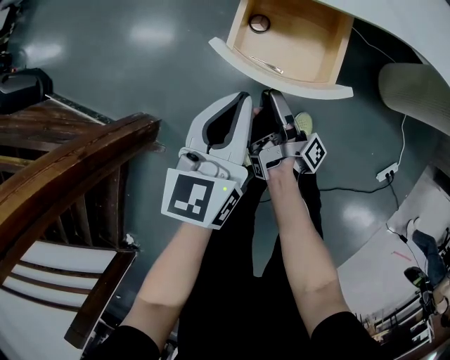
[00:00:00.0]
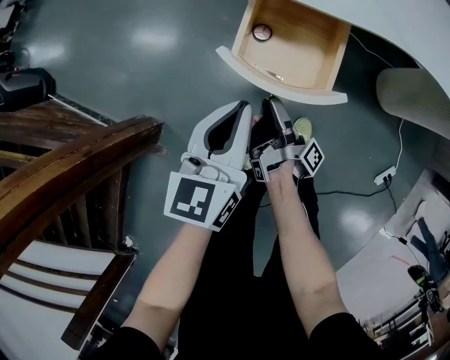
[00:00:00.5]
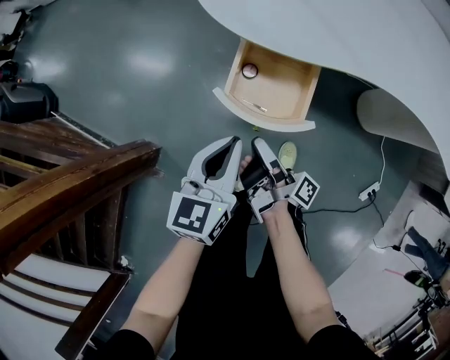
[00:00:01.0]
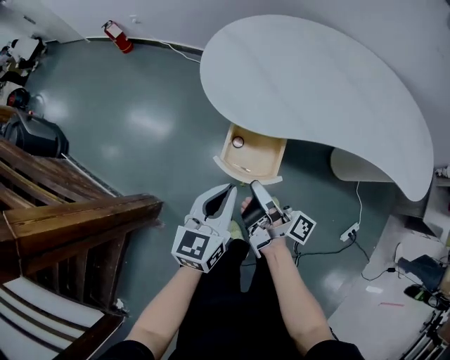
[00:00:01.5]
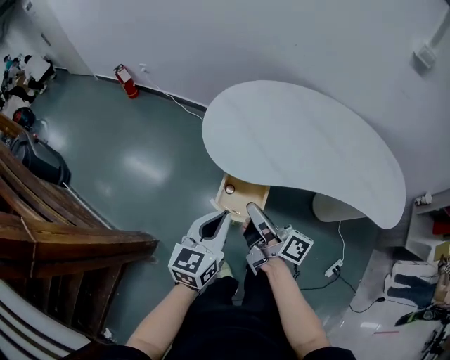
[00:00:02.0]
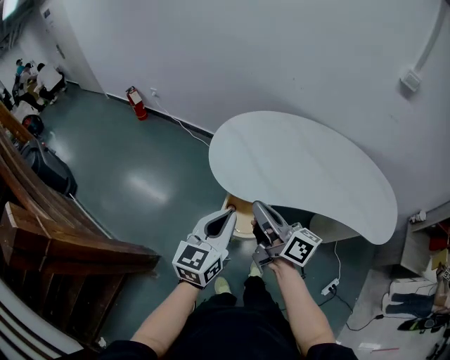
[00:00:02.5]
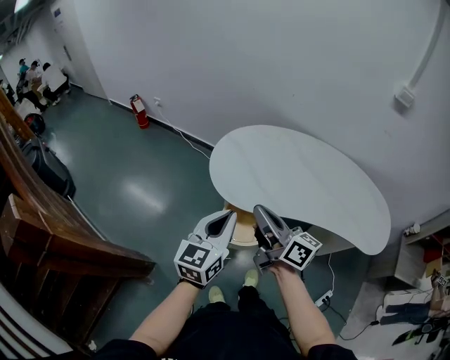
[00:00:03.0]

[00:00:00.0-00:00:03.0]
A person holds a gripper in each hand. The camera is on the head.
00:00:00.0 to 00:00:01.5: The left gripper heads upward, covering roughly 20 cm.
00:00:01.5 to 00:00:03.0: The left gripper travels upward by some 25 cm.

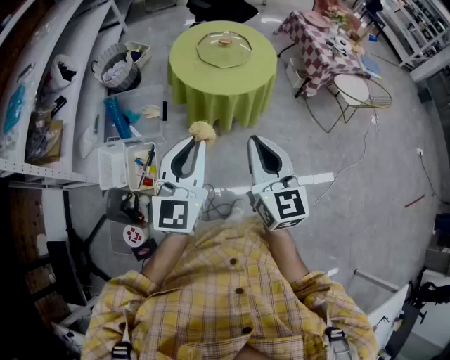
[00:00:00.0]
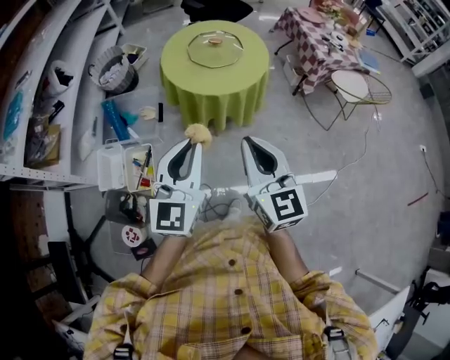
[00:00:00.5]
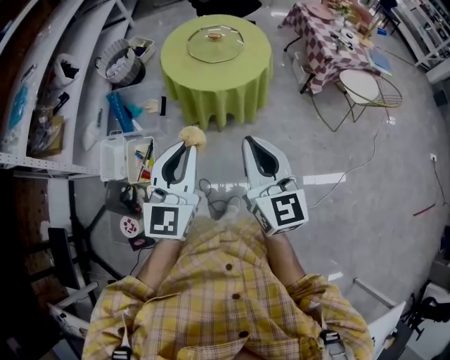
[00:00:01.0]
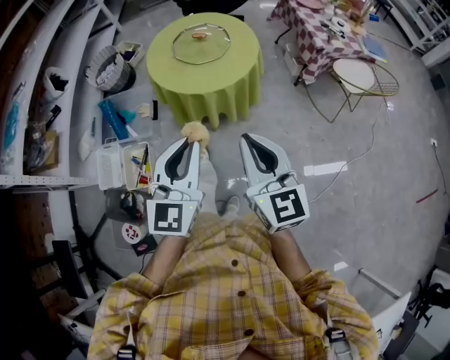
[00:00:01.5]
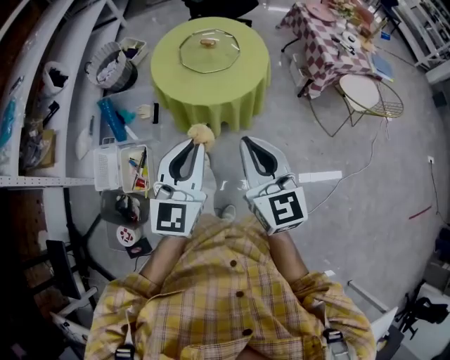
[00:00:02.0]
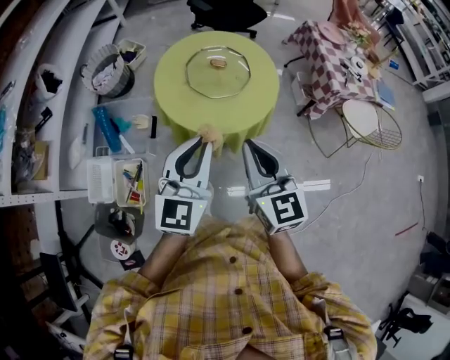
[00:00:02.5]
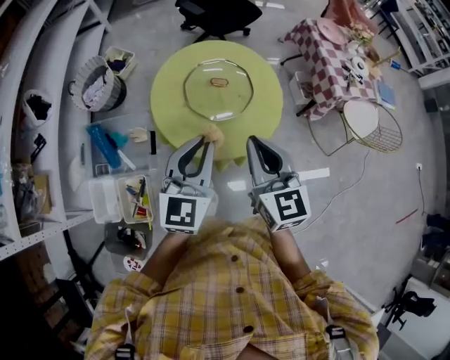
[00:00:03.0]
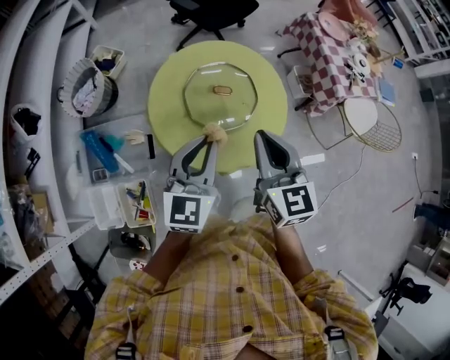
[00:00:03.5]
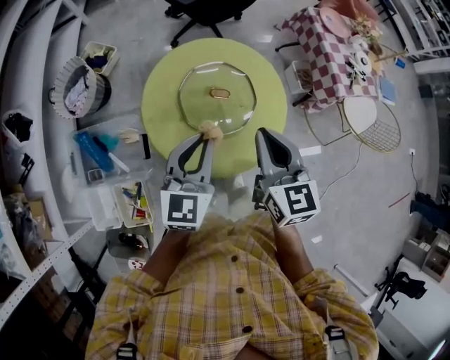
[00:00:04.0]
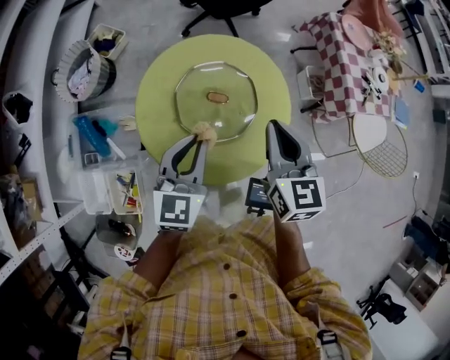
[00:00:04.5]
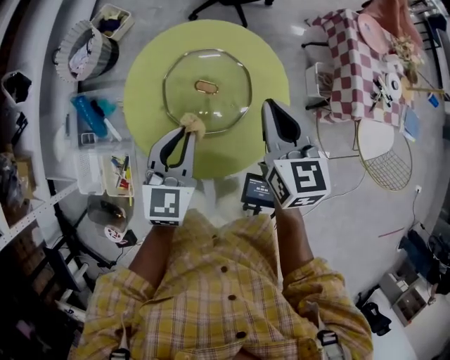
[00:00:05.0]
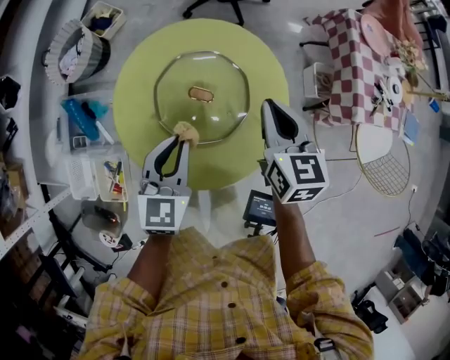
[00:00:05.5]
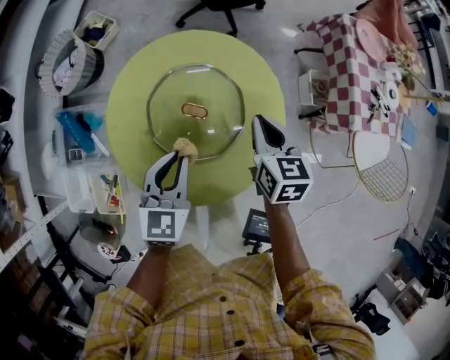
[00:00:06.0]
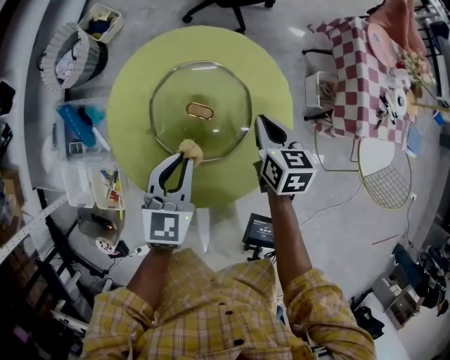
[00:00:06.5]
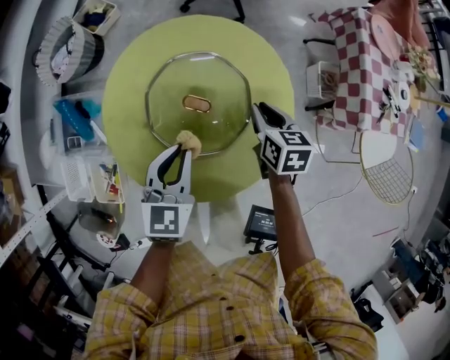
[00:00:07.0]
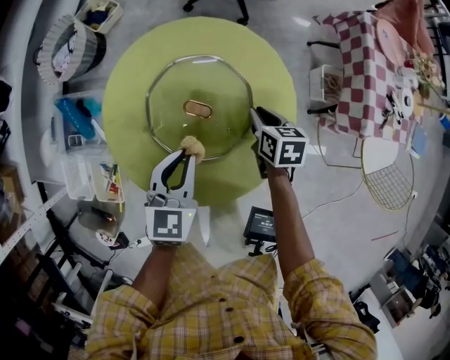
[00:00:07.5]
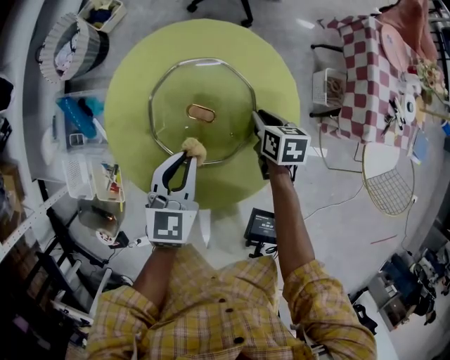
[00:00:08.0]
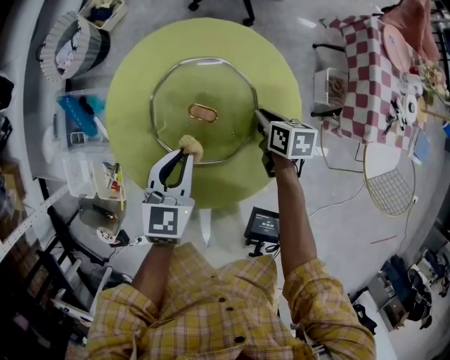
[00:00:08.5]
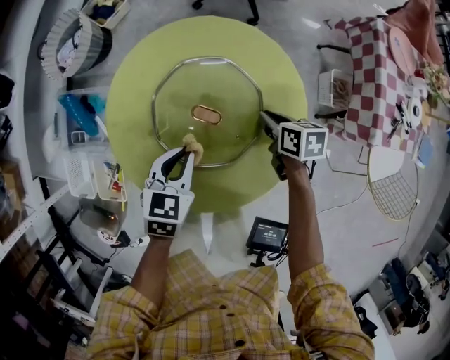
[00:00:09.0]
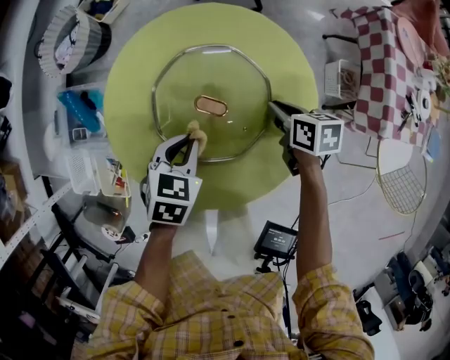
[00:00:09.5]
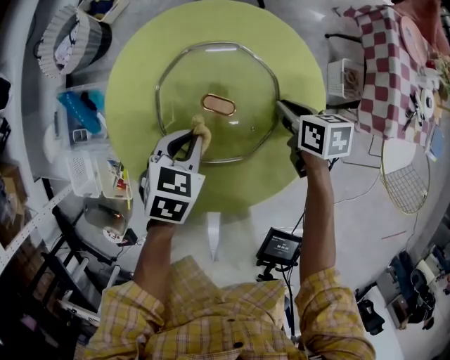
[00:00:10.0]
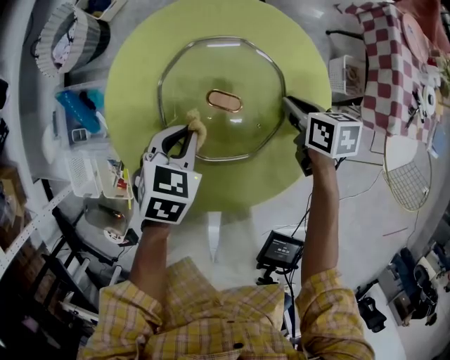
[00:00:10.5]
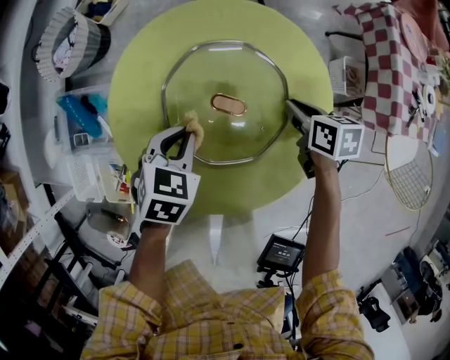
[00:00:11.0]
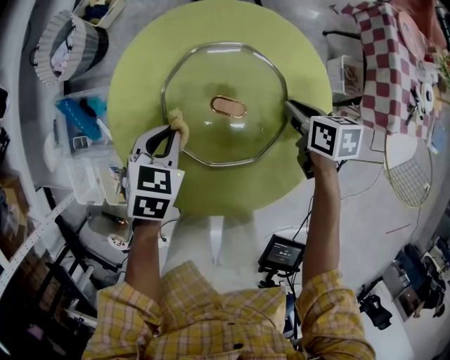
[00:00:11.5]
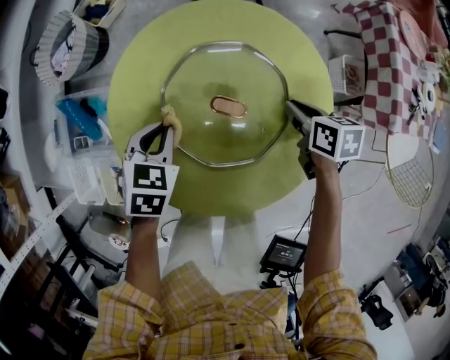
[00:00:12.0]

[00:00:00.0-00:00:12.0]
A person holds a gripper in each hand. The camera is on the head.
00:00:00.0 to 00:00:02.0: Both grippers travel together to the right and forward, approximately 20 cm.
00:00:02.0 to 00:00:04.0: The pair of grippers is taken forward, about 50 cm.
00:00:04.0 to 00:00:06.0: The left gripper heads downward, forward and to the right, covering some 20 cm, and rotates some 20 degrees; the right gripper shifts about 30 cm downward, forward and to the right.
00:00:06.0 to 00:00:08.0: The right gripper heads downward, covering roughly 15 cm, and swivels about 20 degrees. The left gripper moves roughly 5 cm.
00:00:08.0 to 00:00:10.0: The left gripper moves downward, roughly 10 cm, and changes its angle by approximately 30 degrees.
00:00:10.0 to 00:00:12.0: The left gripper moves to the left, about 10 cm.

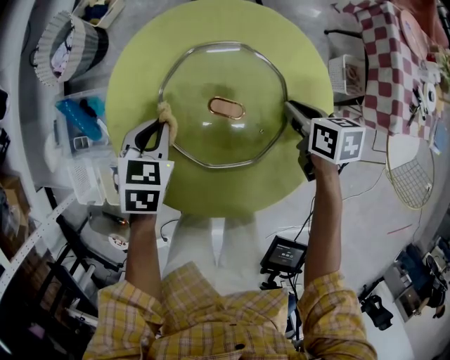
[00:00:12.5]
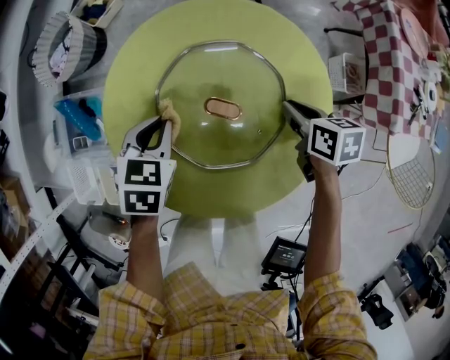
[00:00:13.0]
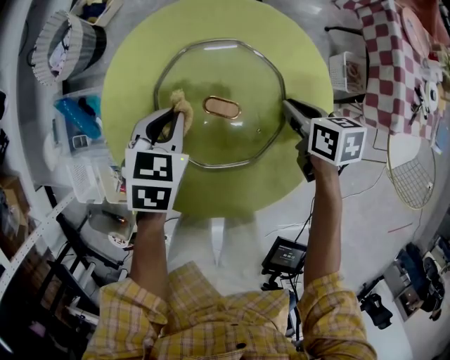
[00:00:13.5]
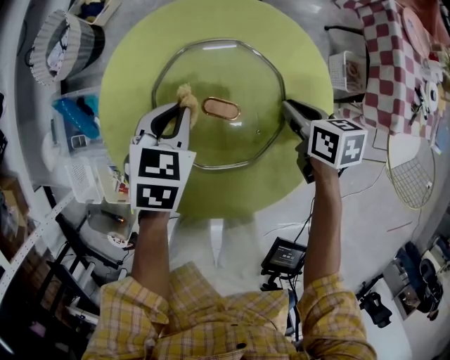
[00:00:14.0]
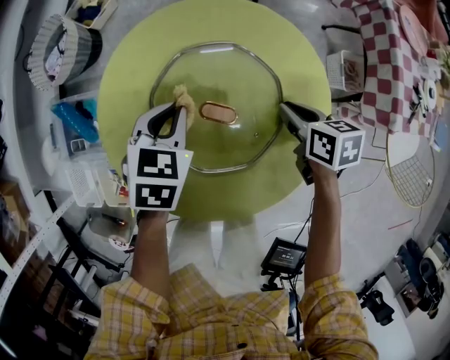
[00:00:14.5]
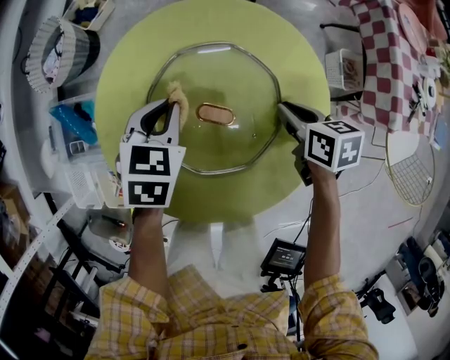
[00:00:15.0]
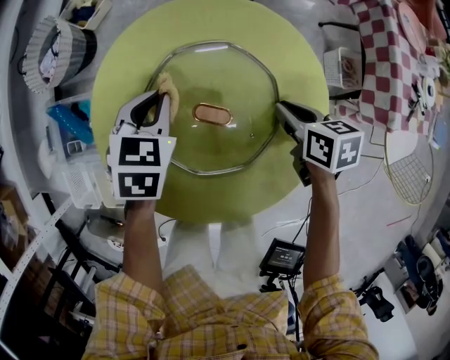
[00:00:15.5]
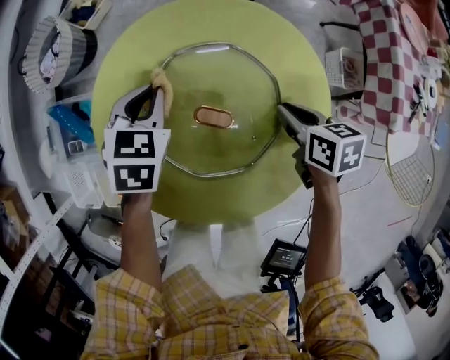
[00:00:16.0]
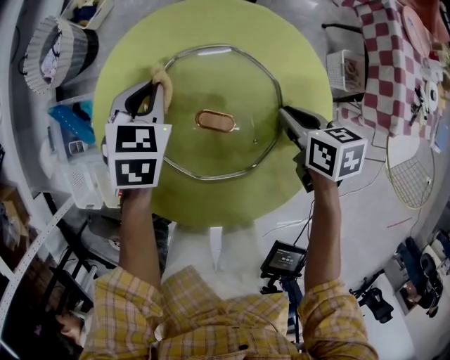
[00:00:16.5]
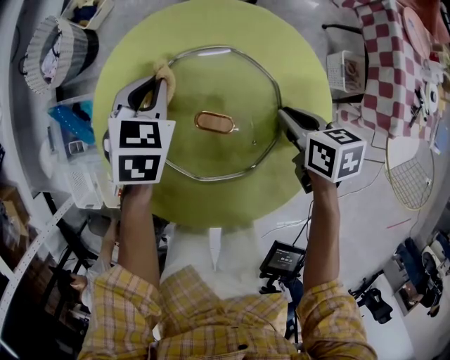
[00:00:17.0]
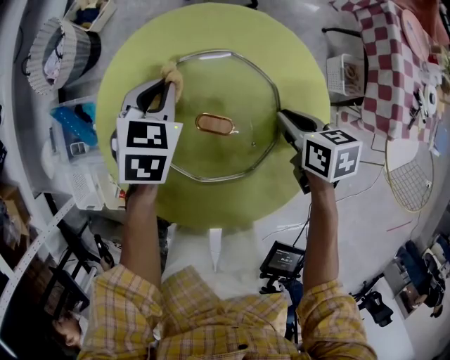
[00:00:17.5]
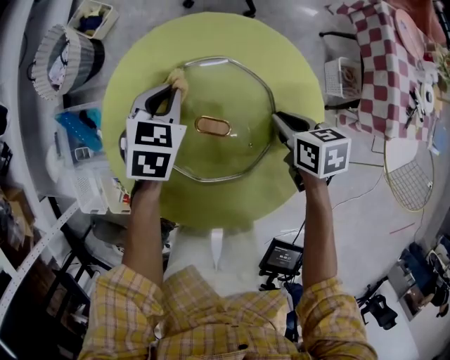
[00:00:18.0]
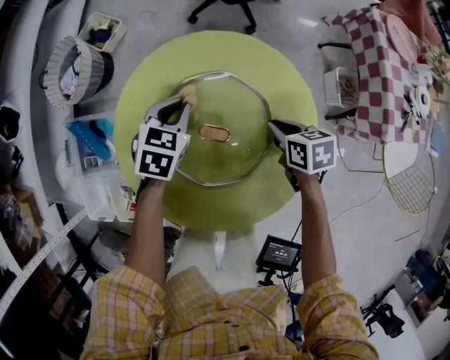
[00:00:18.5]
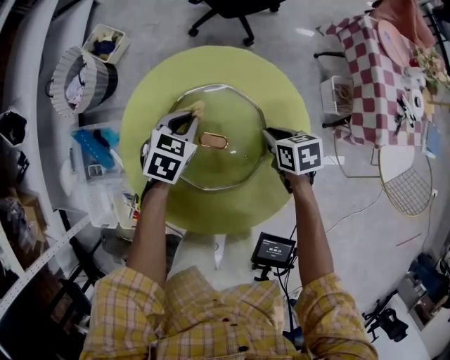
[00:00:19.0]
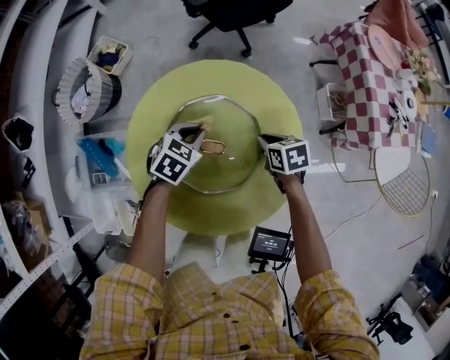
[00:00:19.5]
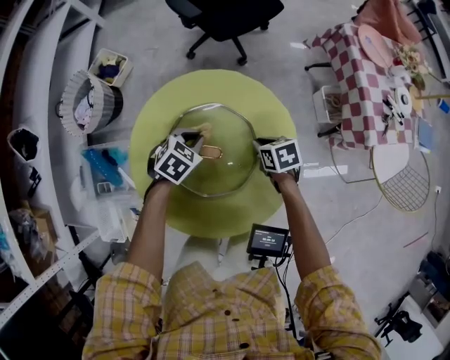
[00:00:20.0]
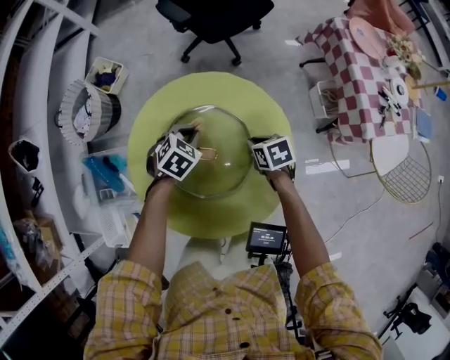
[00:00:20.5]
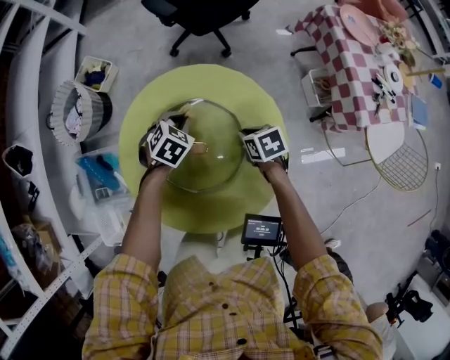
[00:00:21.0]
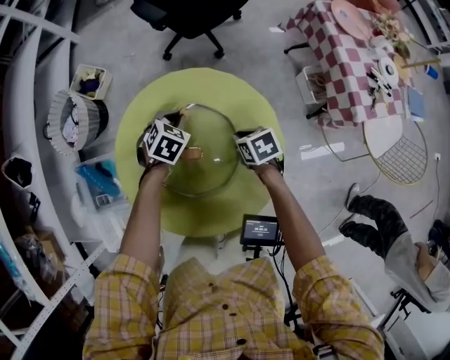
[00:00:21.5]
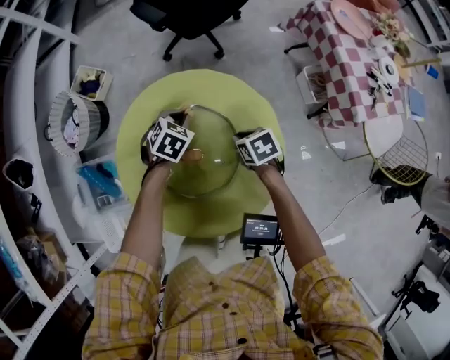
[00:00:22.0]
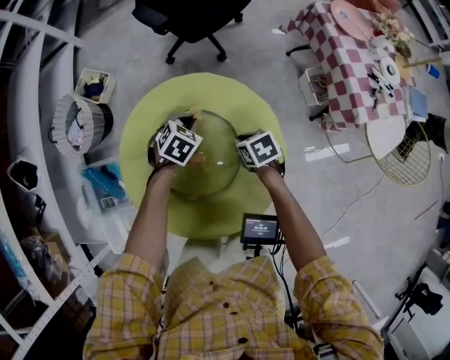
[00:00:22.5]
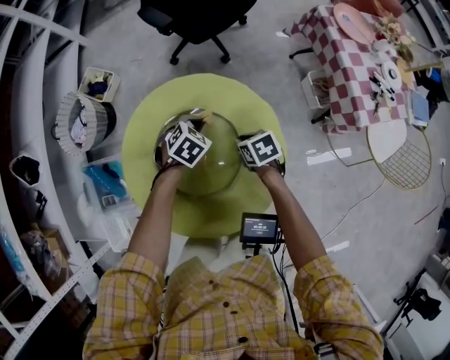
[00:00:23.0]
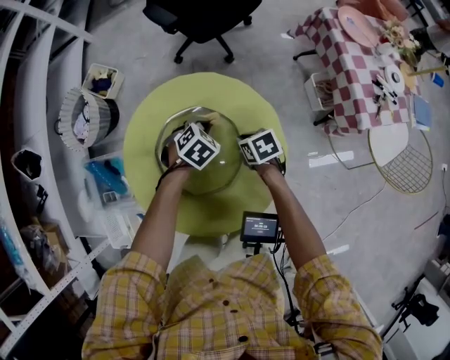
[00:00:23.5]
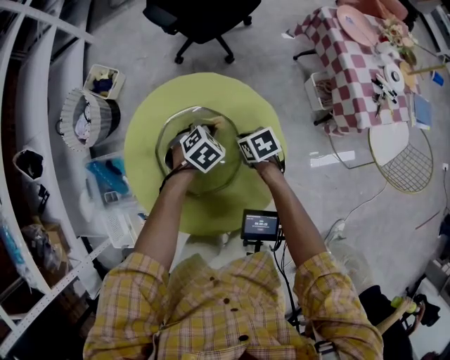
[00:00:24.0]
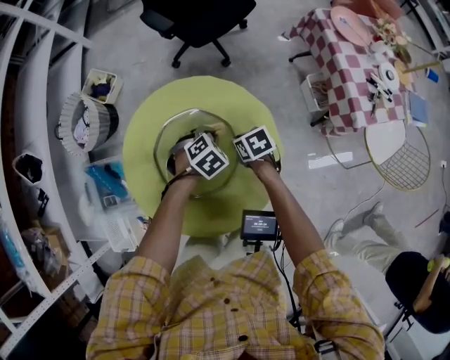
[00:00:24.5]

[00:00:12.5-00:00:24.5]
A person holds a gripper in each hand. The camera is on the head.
00:00:12.5 to 00:00:14.5: The left gripper heads to the right, covering some 5 cm.
00:00:14.5 to 00:00:16.5: The left gripper goes some 5 cm forward.
00:00:16.5 to 00:00:18.5: There are only small adjustments of the grippers.
00:00:18.5 to 00:00:20.5: The left gripper moves some 5 cm, and rotates roughly 20 degrees.
00:00:20.5 to 00:00:22.5: The left gripper heads to the right, covering some 5 cm.
00:00:22.5 to 00:00:24.5: The left gripper heads backward, covering some 5 cm.
